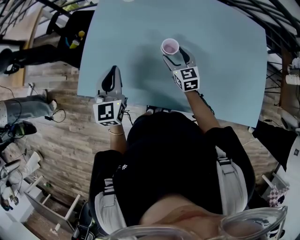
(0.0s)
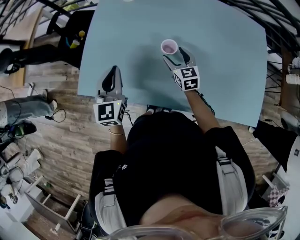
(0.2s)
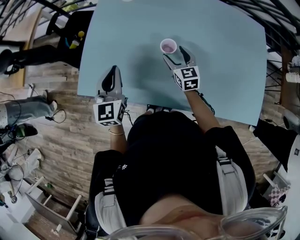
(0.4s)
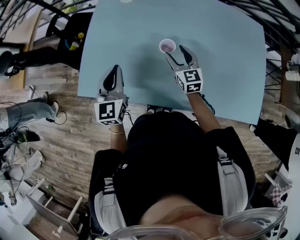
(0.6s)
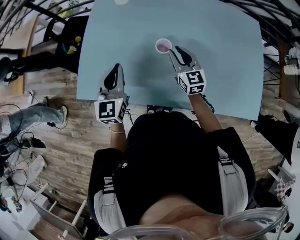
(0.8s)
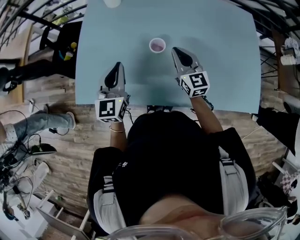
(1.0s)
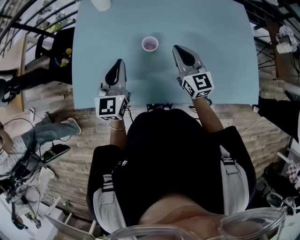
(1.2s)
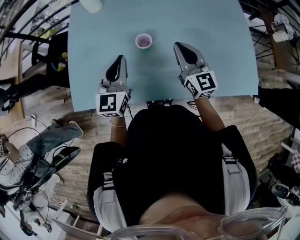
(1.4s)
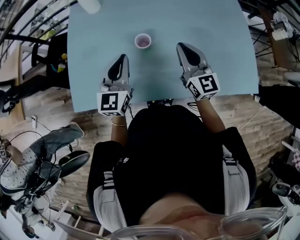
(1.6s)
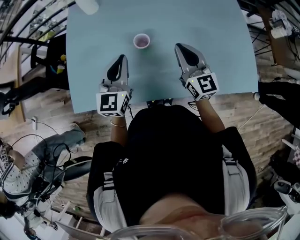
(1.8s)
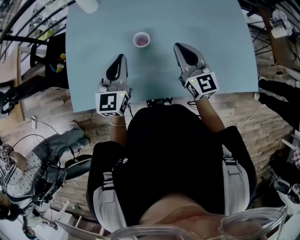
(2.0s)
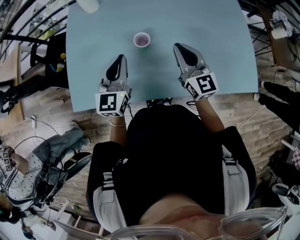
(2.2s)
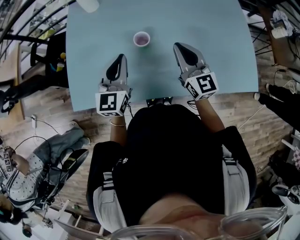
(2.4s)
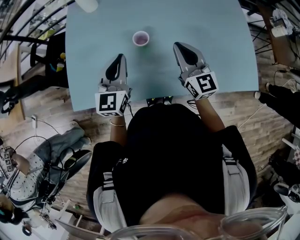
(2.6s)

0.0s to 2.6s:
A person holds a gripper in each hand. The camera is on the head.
0.0s to 1.2s: The right gripper goes about 15 cm upward, to the right and backward, turns by about 20 degrees, and closes up. The left gripper moves to the right, approximately 10 cm.
1.2s to 2.6s: The right gripper moves about 5 cm.

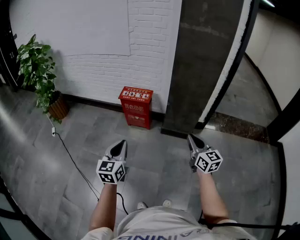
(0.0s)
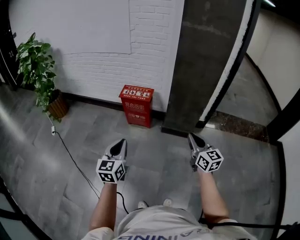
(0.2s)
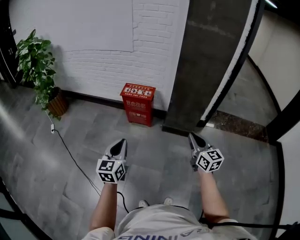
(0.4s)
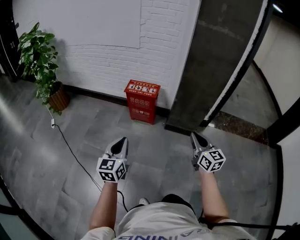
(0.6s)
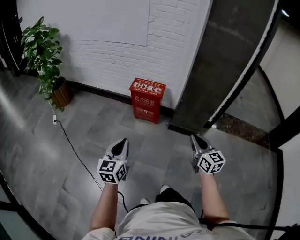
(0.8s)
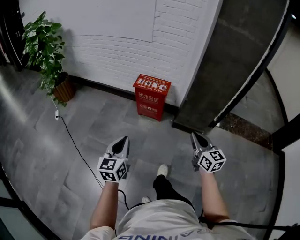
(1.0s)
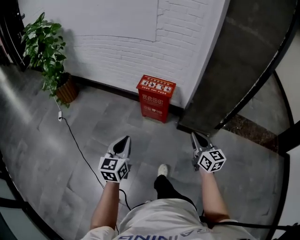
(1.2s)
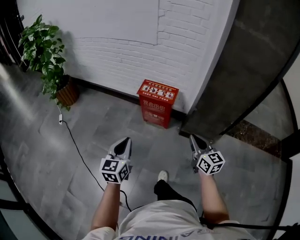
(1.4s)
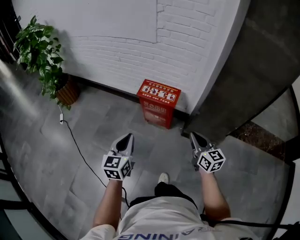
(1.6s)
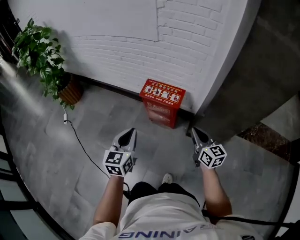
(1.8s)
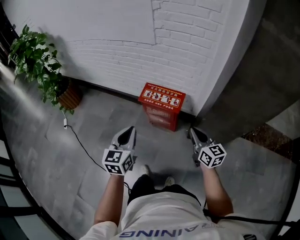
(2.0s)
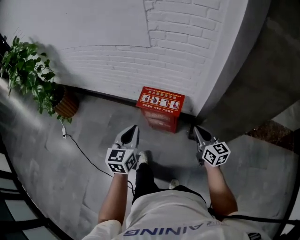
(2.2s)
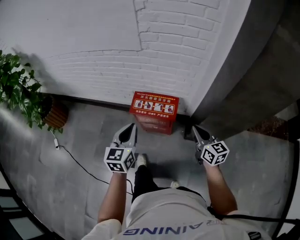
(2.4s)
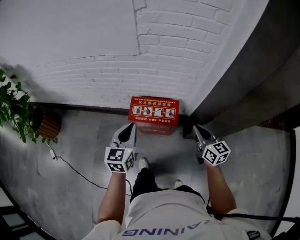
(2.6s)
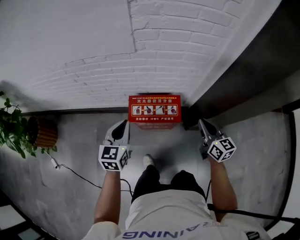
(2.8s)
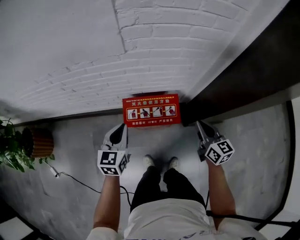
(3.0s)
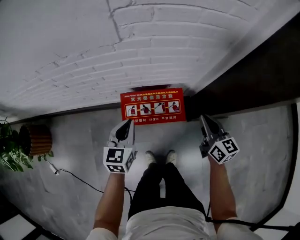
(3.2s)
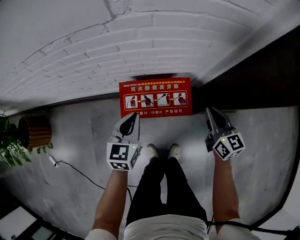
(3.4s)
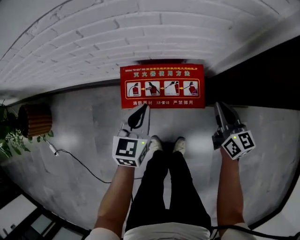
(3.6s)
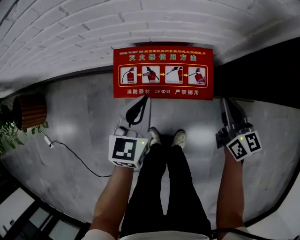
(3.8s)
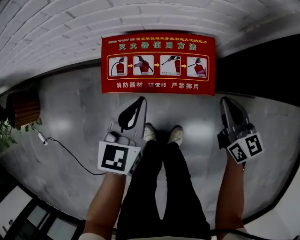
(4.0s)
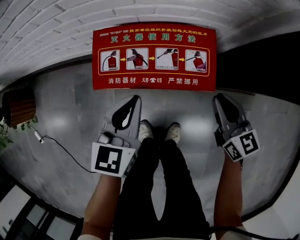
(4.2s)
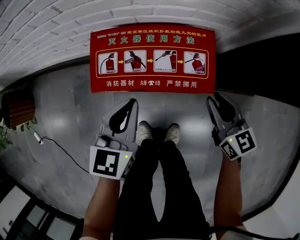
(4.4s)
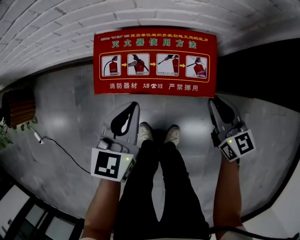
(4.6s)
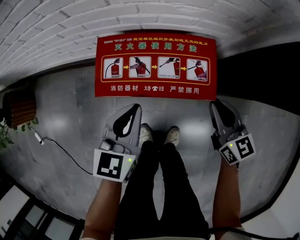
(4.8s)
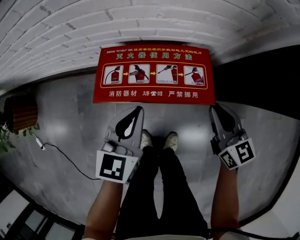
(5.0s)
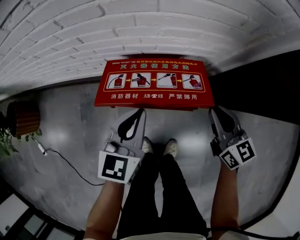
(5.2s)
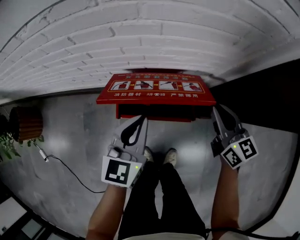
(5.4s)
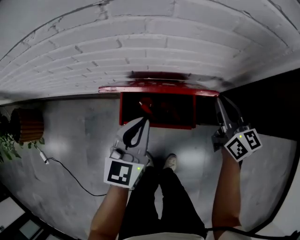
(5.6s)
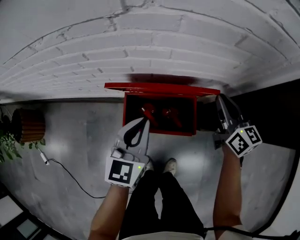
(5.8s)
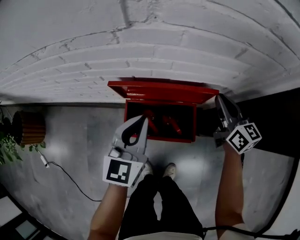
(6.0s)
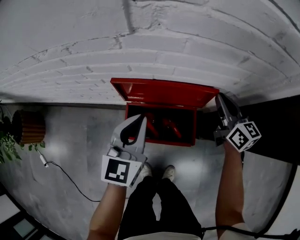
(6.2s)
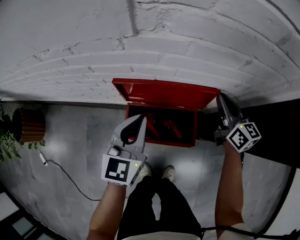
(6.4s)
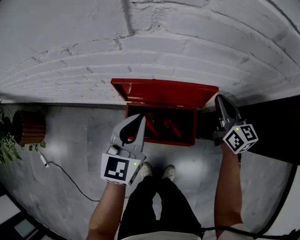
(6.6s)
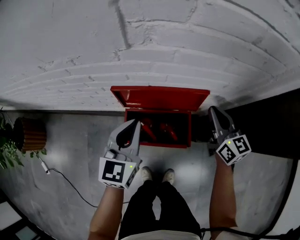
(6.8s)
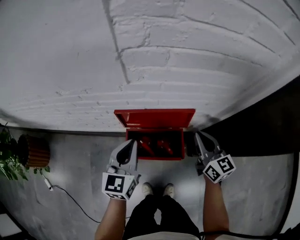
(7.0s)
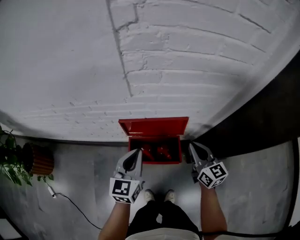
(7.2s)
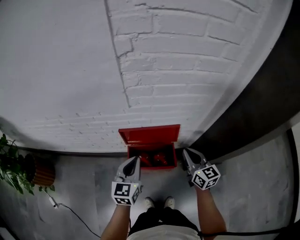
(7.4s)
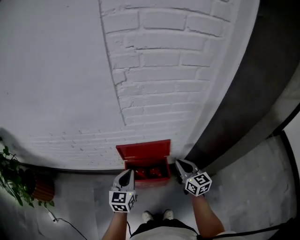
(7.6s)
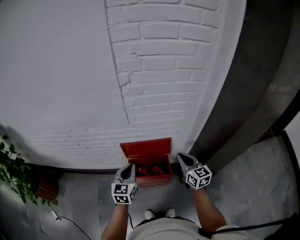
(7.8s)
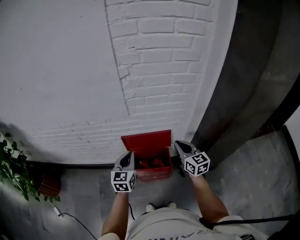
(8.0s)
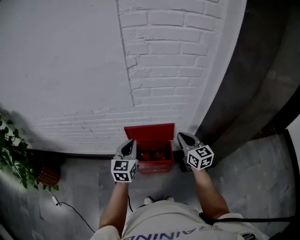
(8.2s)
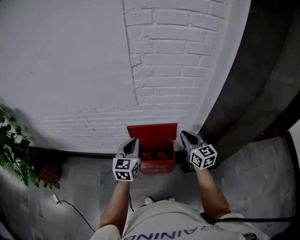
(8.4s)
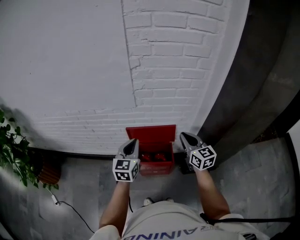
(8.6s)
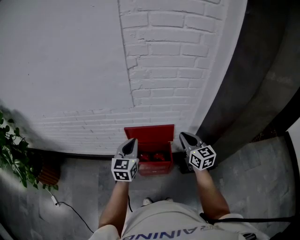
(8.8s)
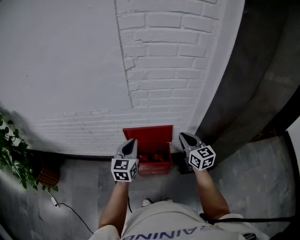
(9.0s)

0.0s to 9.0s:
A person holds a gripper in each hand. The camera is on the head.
0.0s to 1.6s: Both grippers travel together forward, roughly 30 cm.
1.6s to 3.0s: The left gripper ends up some 50 cm from where it was, and changes its angle by approximately 30 degrees; the right gripper changes place by about 30 cm, and rotates some 30 degrees.
3.0s to 4.4s: Both grippers travel together downward, approximately 25 cm.
4.4s to 6.0s: The left gripper shifts roughly 20 cm upward and forward. The right gripper travels forward and upward by approximately 30 cm.
6.0s to 7.6s: The left gripper goes approximately 15 cm upward and backward; the right gripper heads backward and upward, covering approximately 20 cm.
7.6s to 9.0s: Both grippers move upward, about 10 cm.

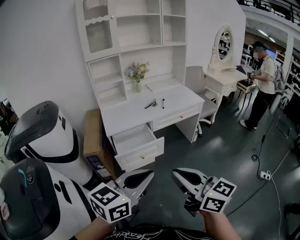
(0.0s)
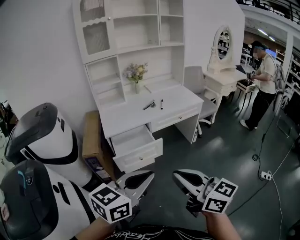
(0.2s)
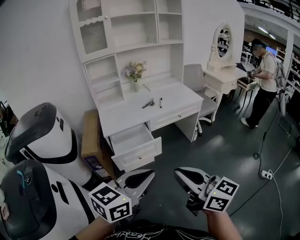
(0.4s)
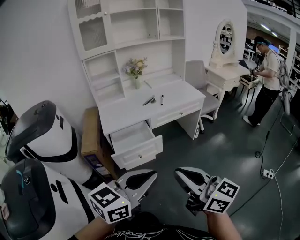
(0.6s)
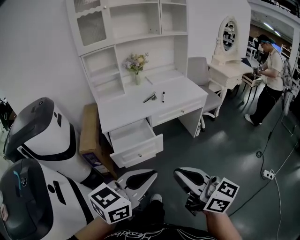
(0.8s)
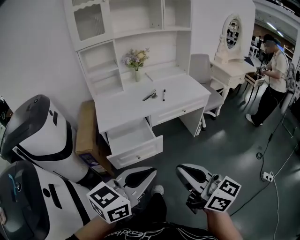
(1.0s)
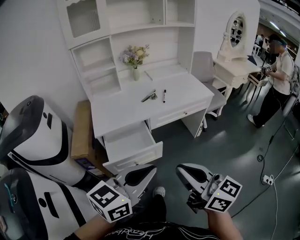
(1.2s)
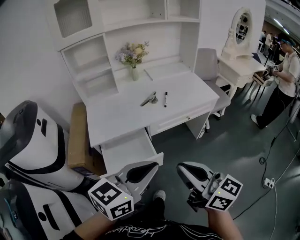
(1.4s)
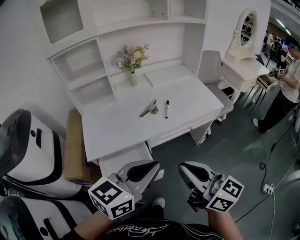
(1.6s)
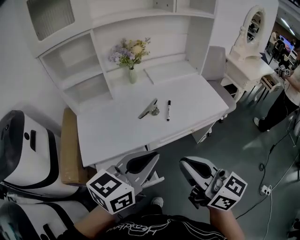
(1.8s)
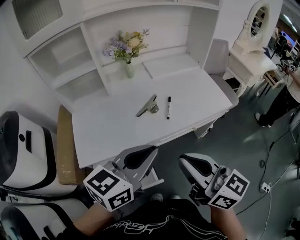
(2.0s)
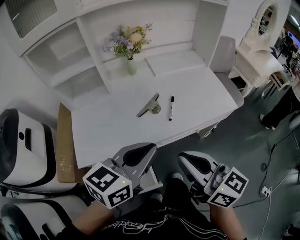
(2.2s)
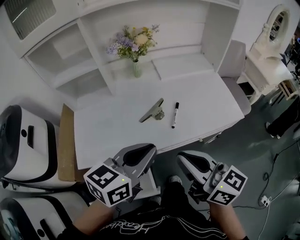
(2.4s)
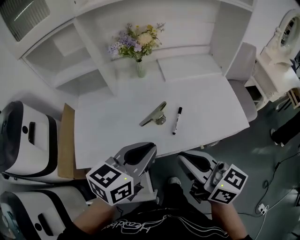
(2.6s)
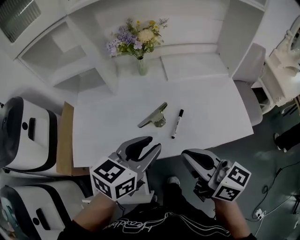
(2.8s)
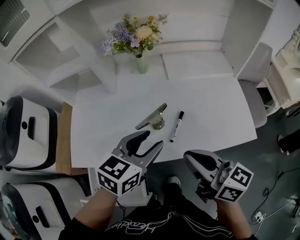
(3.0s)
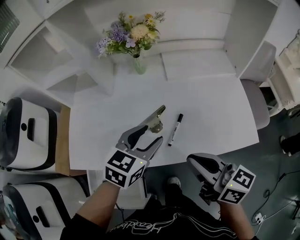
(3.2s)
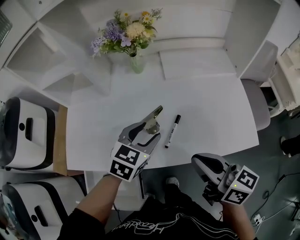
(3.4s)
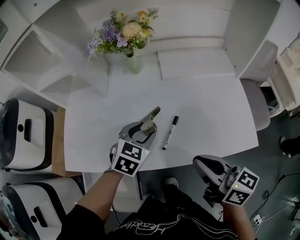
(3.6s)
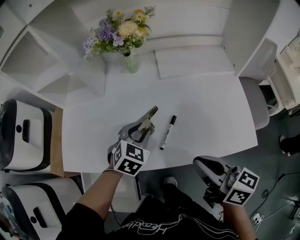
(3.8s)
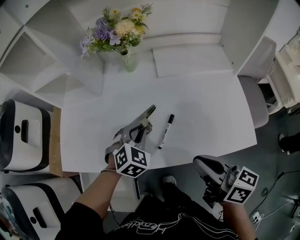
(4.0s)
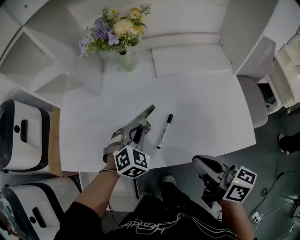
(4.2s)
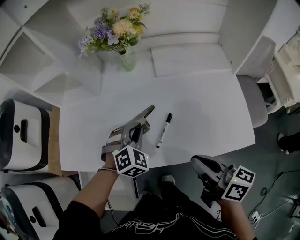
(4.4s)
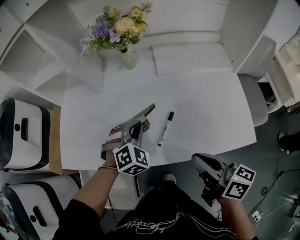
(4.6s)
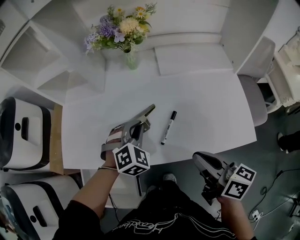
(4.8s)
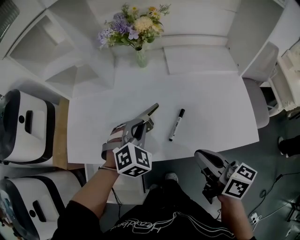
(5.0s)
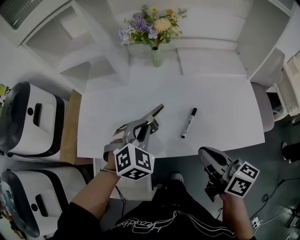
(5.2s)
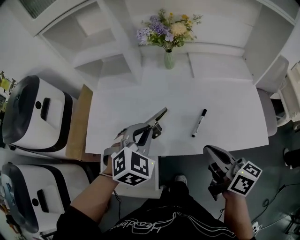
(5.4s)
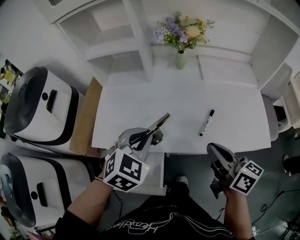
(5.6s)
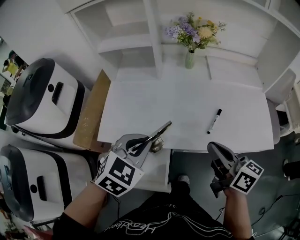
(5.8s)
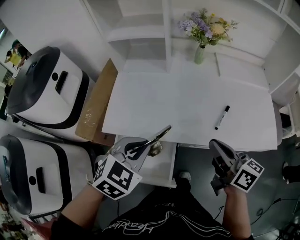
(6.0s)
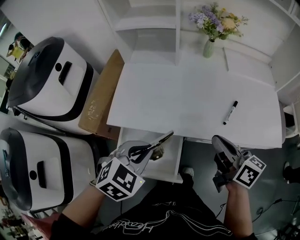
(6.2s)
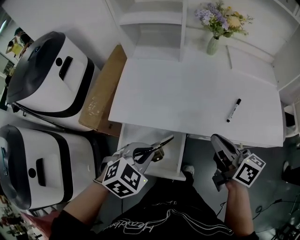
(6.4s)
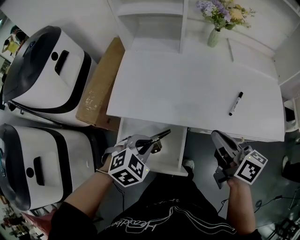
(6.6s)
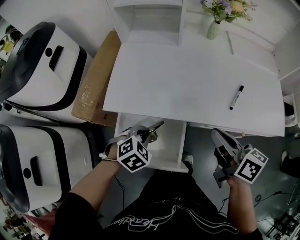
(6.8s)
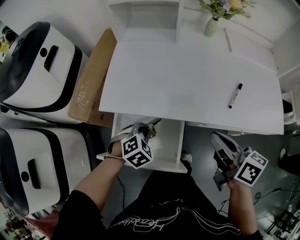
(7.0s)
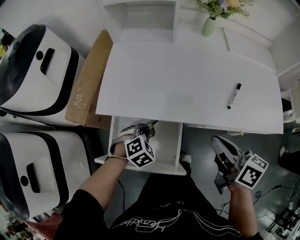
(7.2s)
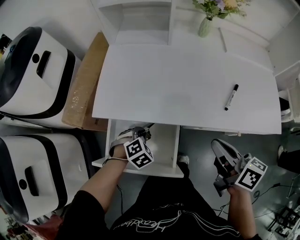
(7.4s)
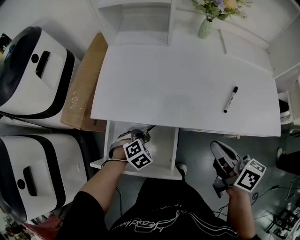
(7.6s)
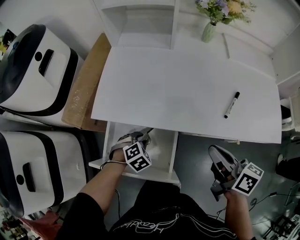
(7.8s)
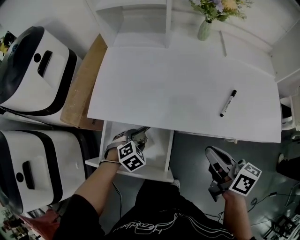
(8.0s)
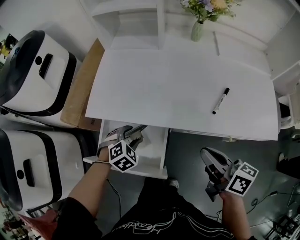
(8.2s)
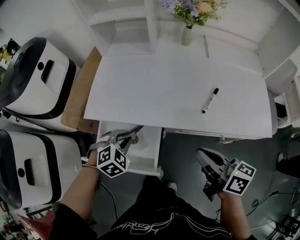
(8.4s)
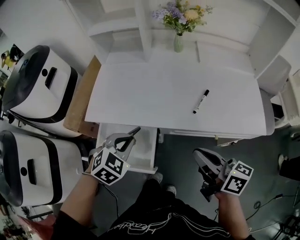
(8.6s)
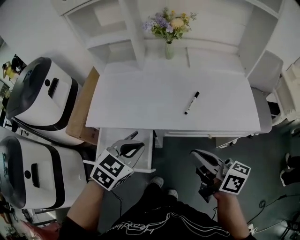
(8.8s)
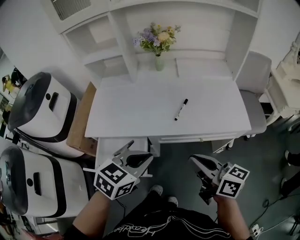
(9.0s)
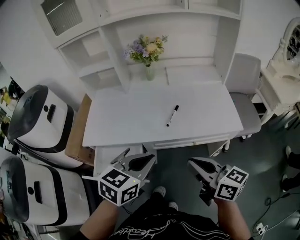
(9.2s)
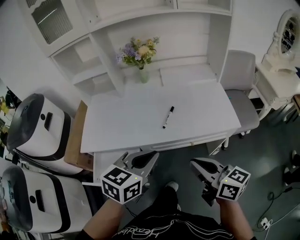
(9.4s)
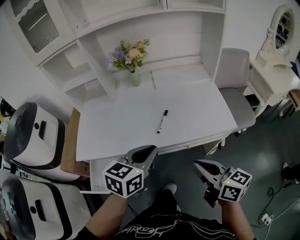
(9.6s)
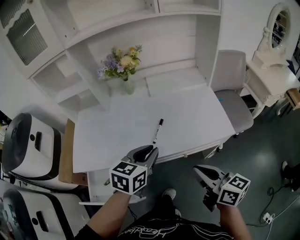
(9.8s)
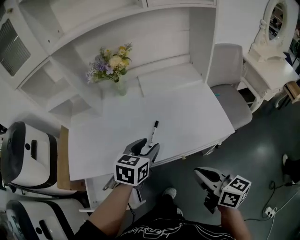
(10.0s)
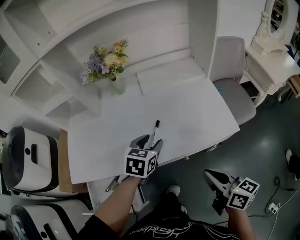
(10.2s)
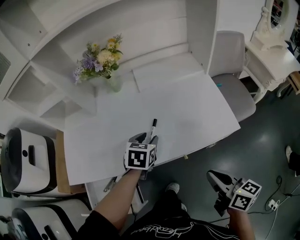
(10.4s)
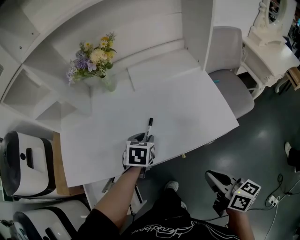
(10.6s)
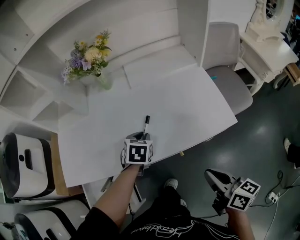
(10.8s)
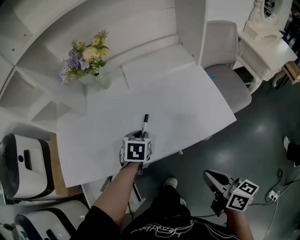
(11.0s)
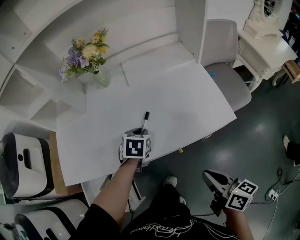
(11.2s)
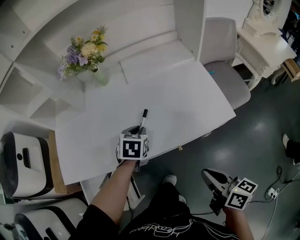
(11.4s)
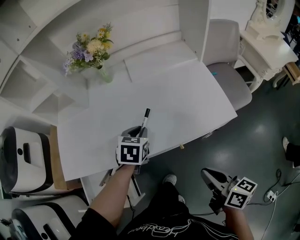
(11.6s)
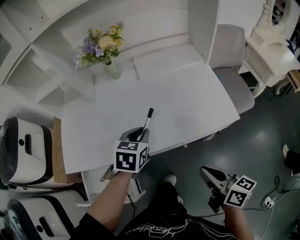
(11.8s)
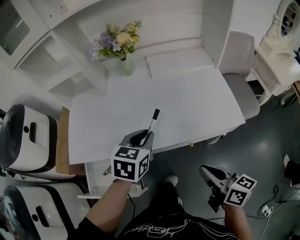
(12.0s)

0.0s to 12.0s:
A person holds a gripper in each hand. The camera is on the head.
0.0s to 1.6s: The grippers both shift forward by roughly 35 cm.
1.6s to 3.0s: Both grippers move forward, some 30 cm. The left gripper rotates some 30 degrees, and opens, while the right gripper swivels approximately 20 degrees.
3.0s to 4.4s: The left gripper travels downward and forward by some 15 cm, rotates around the line of its fingers by approximately 50 degrees, clockwise from behind, and closes. The right gripper travels to the right and downward by some 10 cm.
4.4s to 6.0s: The left gripper travels to the left, backward and upward by about 30 cm, and swivels some 30 degrees. The right gripper shifts some 20 cm to the left.
6.0s to 7.6s: The left gripper heads downward, covering roughly 30 cm, and turns by about 30 degrees. Meanwhile the right gripper heads downward, covering about 10 cm.
7.6s to 9.0s: The left gripper travels upward and to the right by about 40 cm, points its fingers roughly 30 degrees further upward, and opens and closes again. The right gripper shifts roughly 20 cm backward, upward and to the right.
9.0s to 10.4s: The right gripper shifts some 15 cm to the right and downward, and swivels about 30 degrees; the left gripper moves forward, downward and to the right, some 30 cm, and opens up.
10.4s to 12.0s: The right gripper travels to the left by approximately 5 cm; the left gripper travels upward and backward by approximately 10 cm, and closes.
